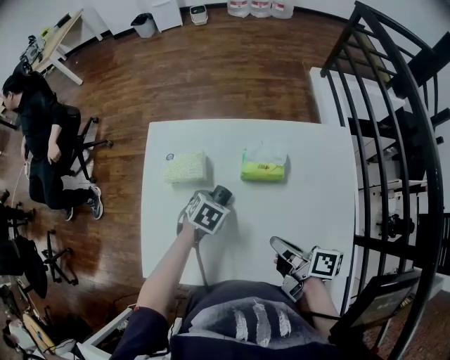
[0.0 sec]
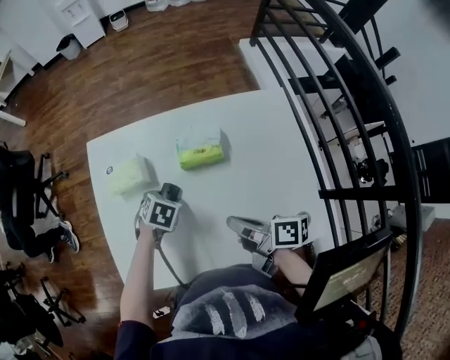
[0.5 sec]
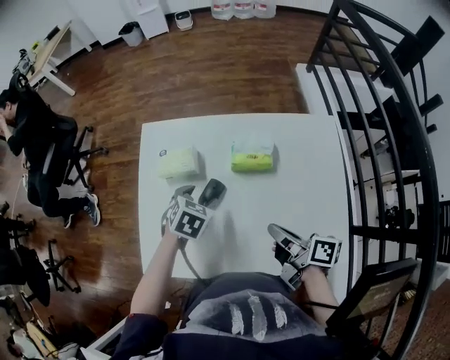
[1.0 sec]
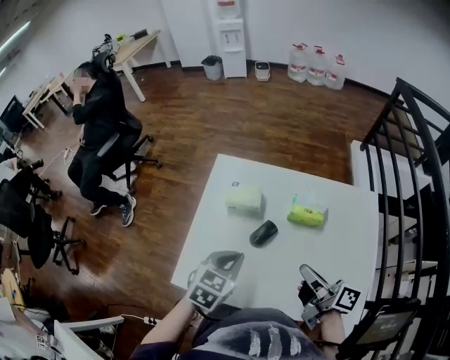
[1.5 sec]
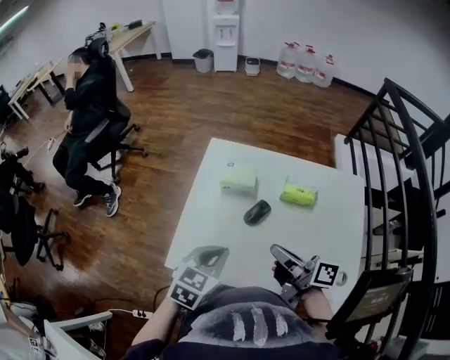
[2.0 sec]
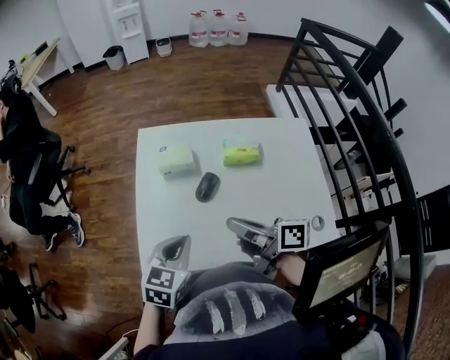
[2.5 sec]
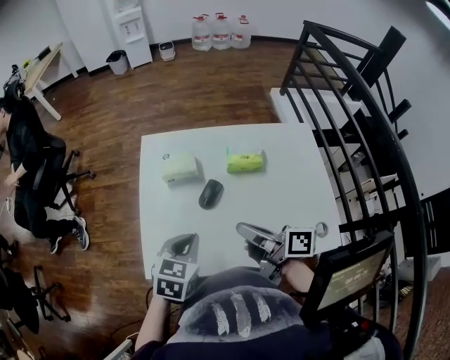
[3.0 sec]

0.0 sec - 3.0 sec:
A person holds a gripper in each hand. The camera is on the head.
0.0 sec - 1.5 sec: The left gripper heads upward, covering some 20 cm, rotates approximately 30 degrees, and closes up.

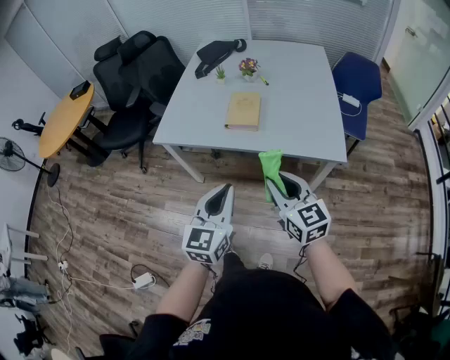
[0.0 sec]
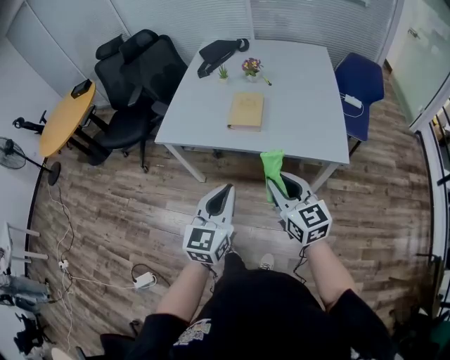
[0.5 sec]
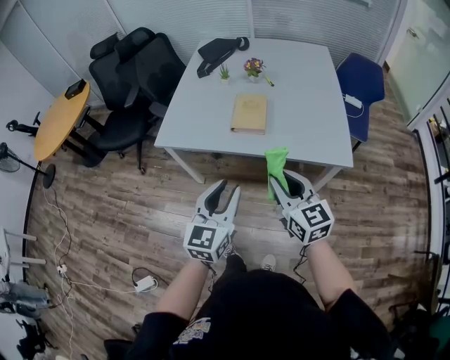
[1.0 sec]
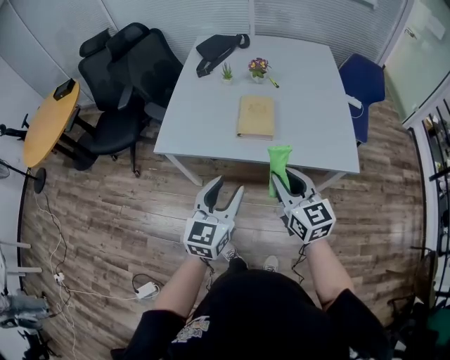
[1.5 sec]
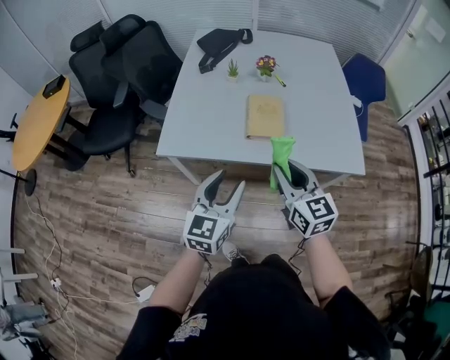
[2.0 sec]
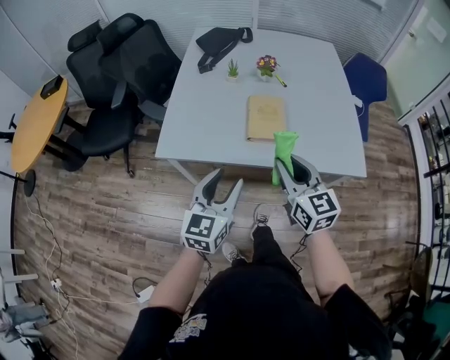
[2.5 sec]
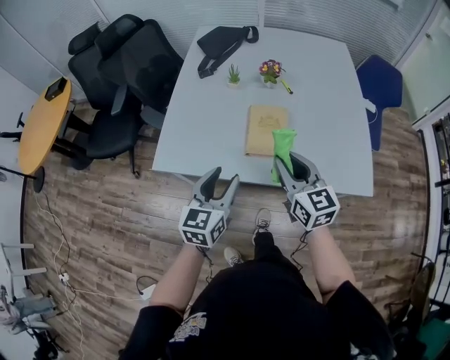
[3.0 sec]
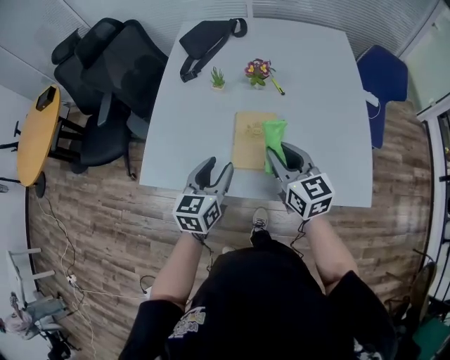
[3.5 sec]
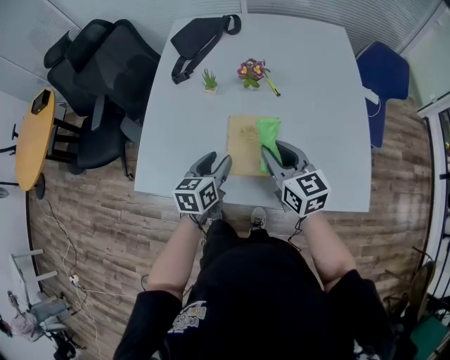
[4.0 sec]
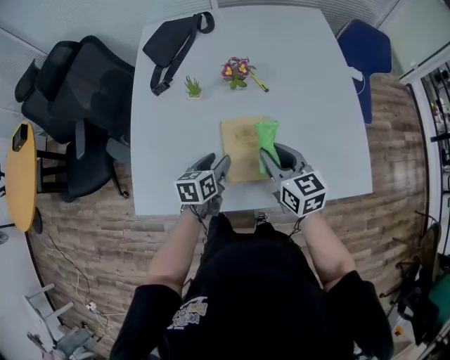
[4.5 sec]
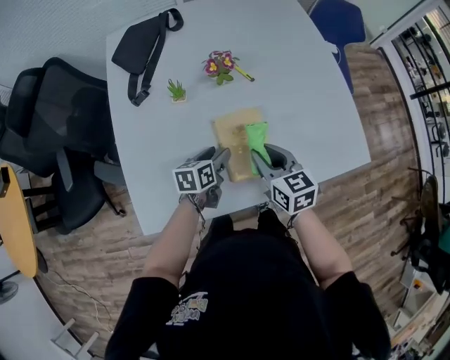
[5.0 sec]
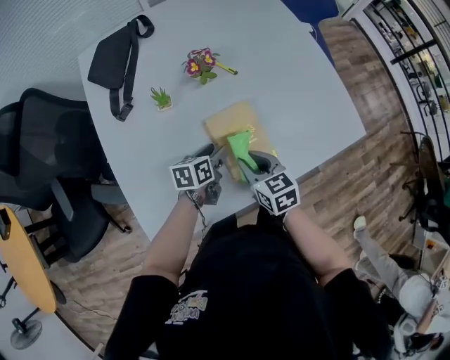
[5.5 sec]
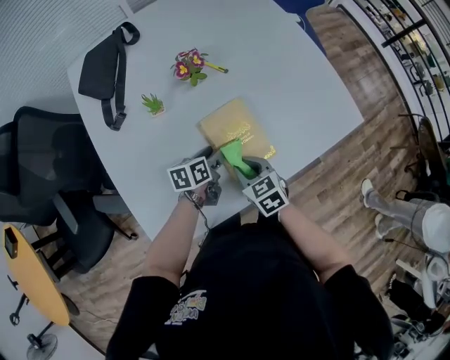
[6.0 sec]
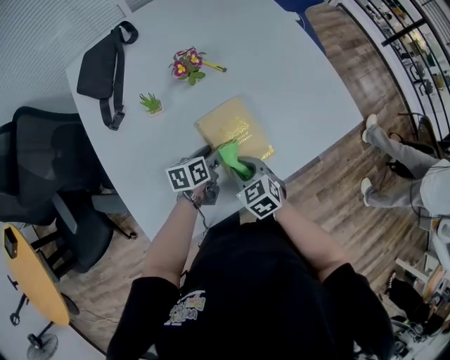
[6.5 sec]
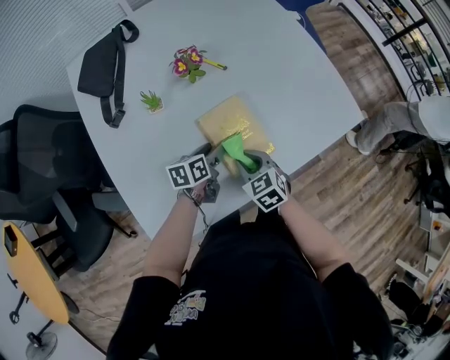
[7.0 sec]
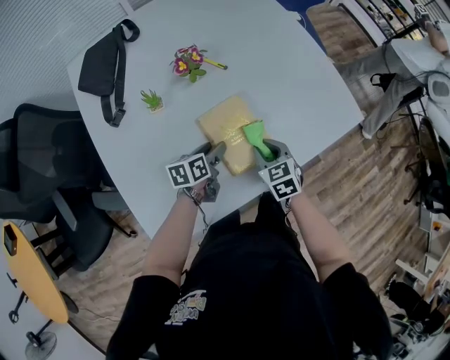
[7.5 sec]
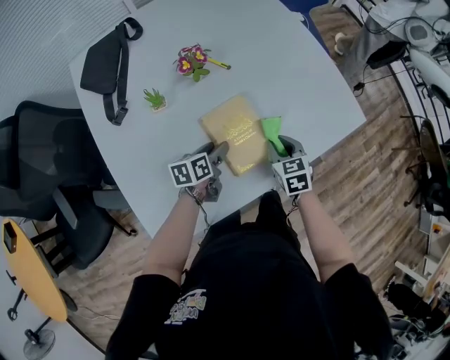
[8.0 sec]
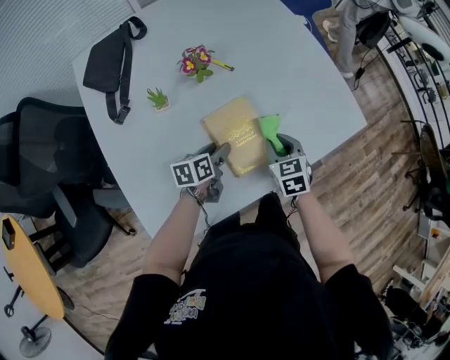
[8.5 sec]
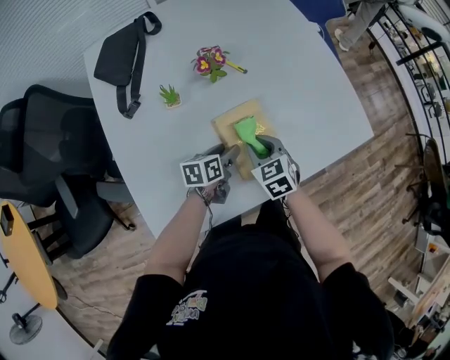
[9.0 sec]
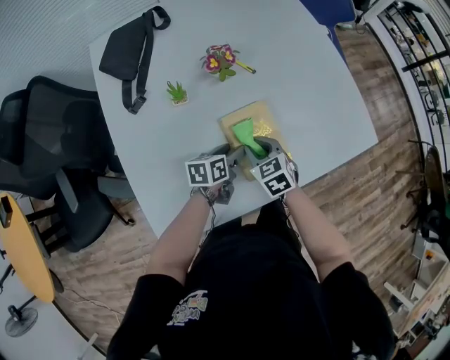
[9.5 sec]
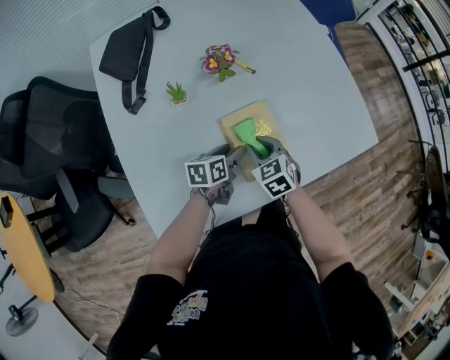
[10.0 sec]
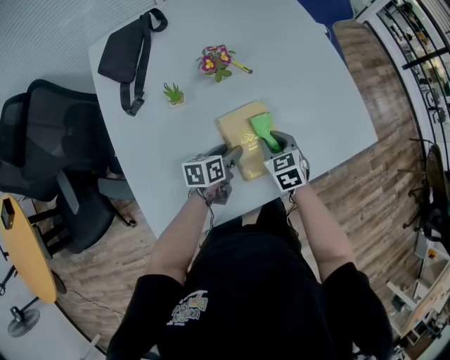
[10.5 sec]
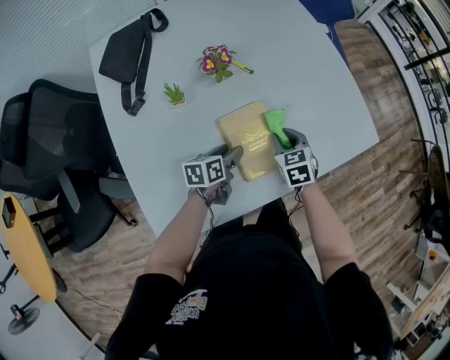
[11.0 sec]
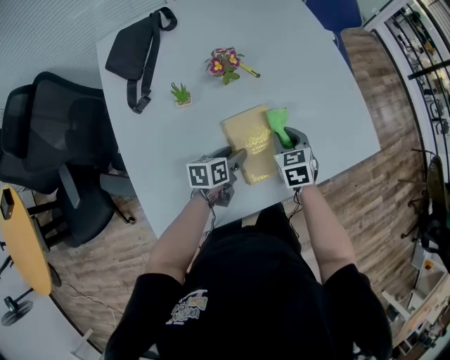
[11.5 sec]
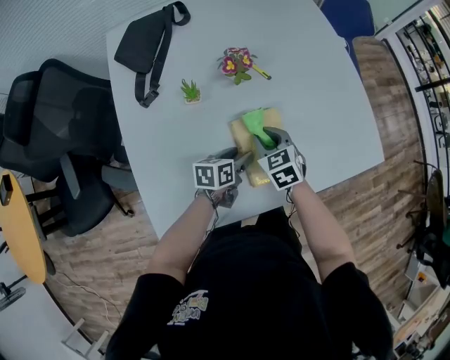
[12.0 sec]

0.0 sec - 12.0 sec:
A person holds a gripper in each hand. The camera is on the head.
0.0 sec - 2.0 sec: The grippers both shift forward and to the left by some 20 cm. The left gripper opens.
2.0 sec - 4.0 sec: The right gripper goes roughly 25 cm forward. Meanwhile the left gripper moves forward and downward, roughly 30 cm, and rotates roughly 30 degrees.
4.0 sec - 6.0 sec: Both grippers move downward, approximately 15 cm. The left gripper turns by some 40 degrees. The right gripper tips its fingers downward by some 30 degrees.
6.0 sec - 8.0 sec: The right gripper shifts some 15 cm to the right and forward.
8.0 sec - 10.0 sec: The right gripper travels to the left by approximately 10 cm, and changes its angle by some 20 degrees.
10.0 sec - 12.0 sec: The right gripper goes to the right and returns, about 10 cm each way.

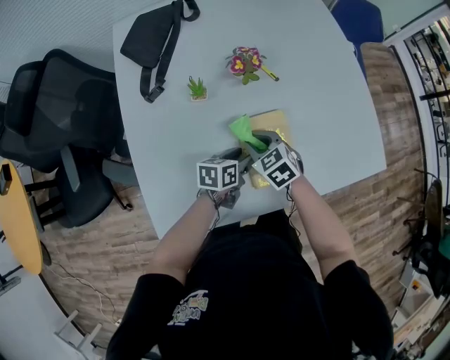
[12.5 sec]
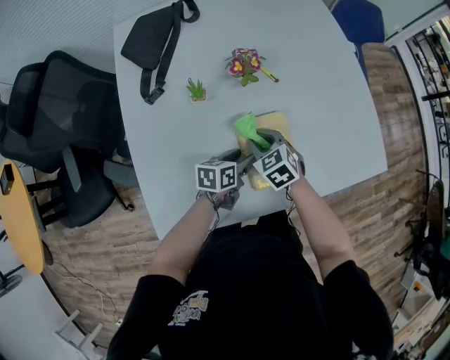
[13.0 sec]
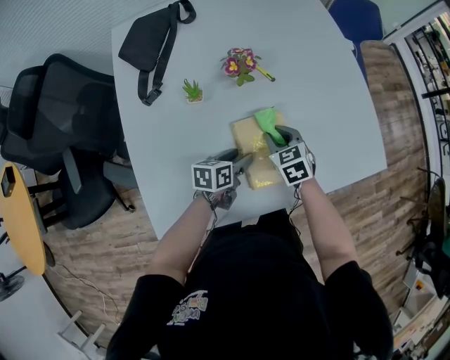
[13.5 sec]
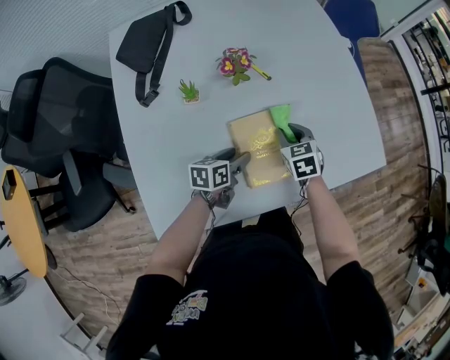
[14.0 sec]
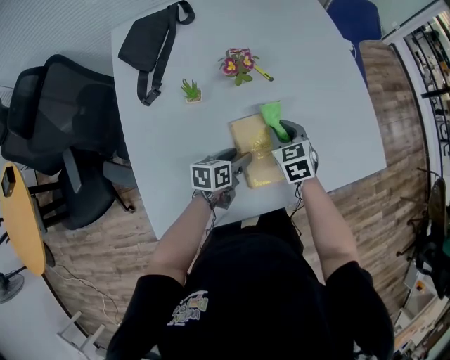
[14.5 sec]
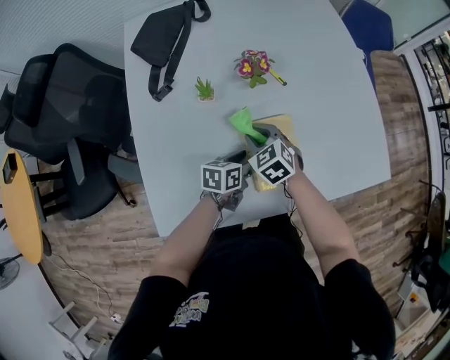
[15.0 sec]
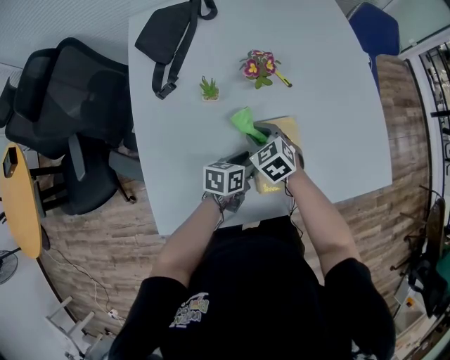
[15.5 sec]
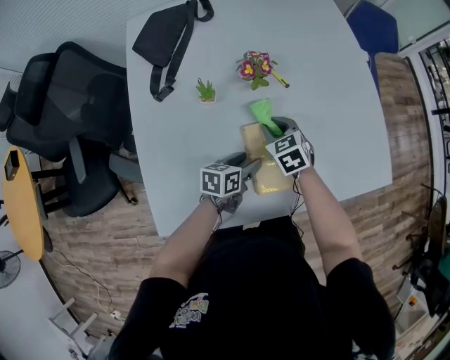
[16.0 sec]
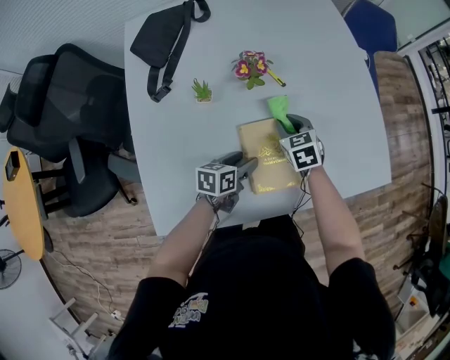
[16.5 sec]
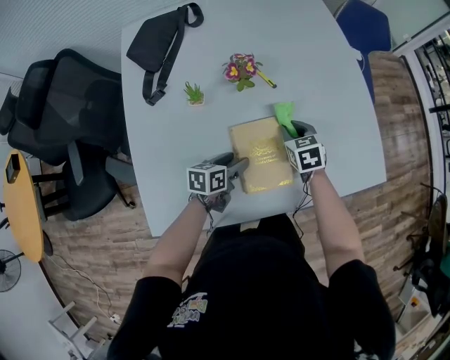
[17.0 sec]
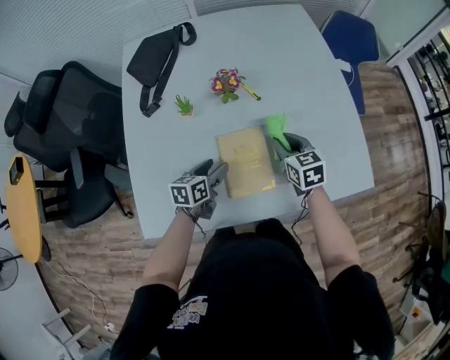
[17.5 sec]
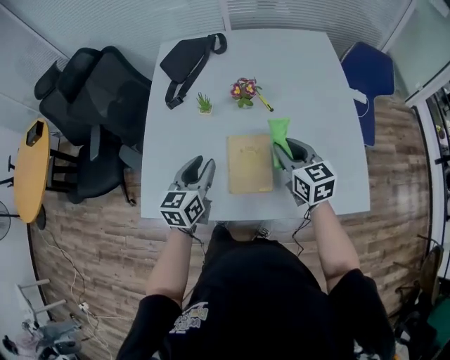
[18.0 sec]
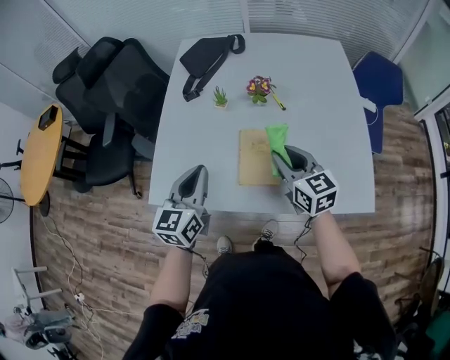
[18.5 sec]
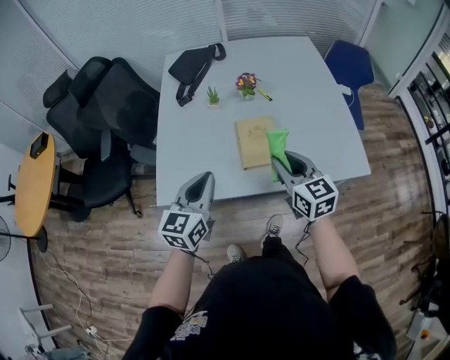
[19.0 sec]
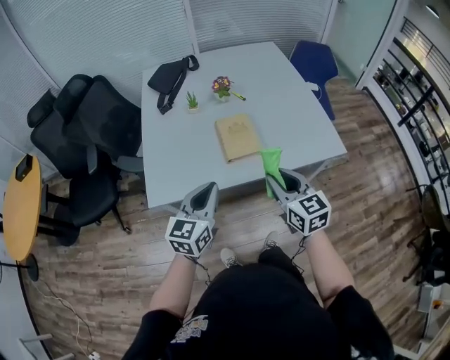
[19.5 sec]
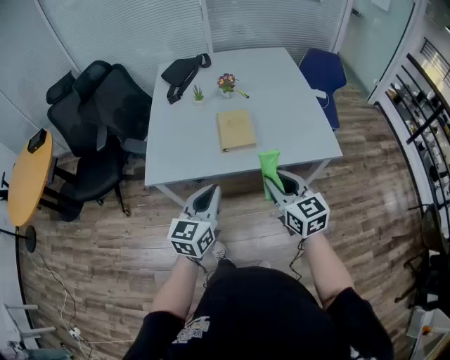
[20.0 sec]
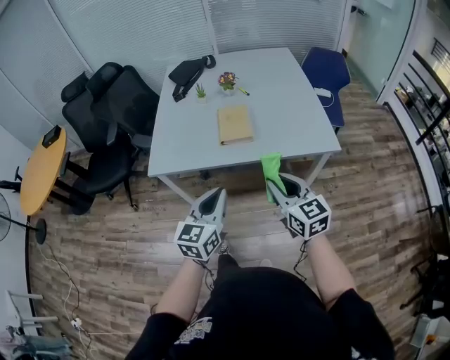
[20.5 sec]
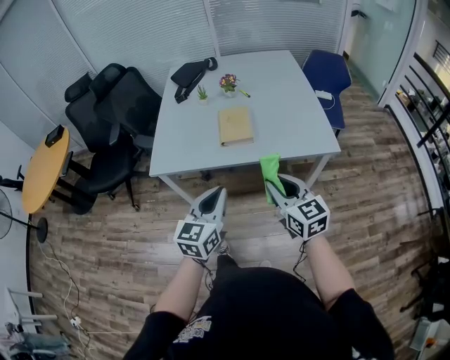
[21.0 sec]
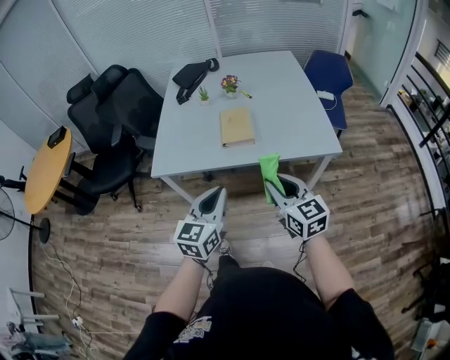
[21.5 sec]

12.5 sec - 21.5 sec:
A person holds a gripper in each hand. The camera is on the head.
12.5 sec - 14.5 sec: The right gripper goes some 10 cm to the right and forward, and changes its angle by some 20 degrees.
14.5 sec - 17.0 sec: The right gripper reaches some 10 cm to the left, then returns.
17.0 sec - 19.5 sec: The right gripper changes place by about 40 cm, and tips its fingers upward by roughly 30 degrees. The left gripper ends up about 40 cm from where it was, rotates some 50 degrees, and closes its fingers.
19.5 sec - 21.5 sec: Both grippers move backward and to the right, about 15 cm.

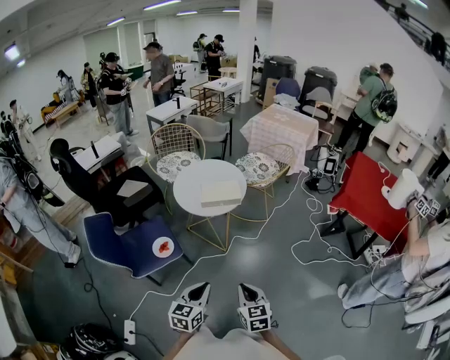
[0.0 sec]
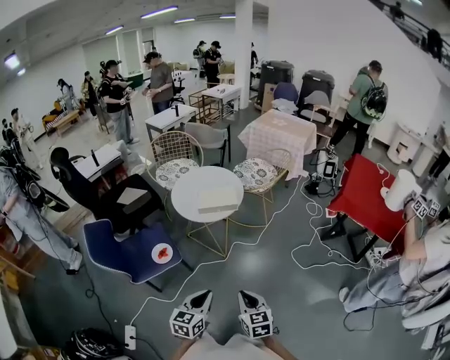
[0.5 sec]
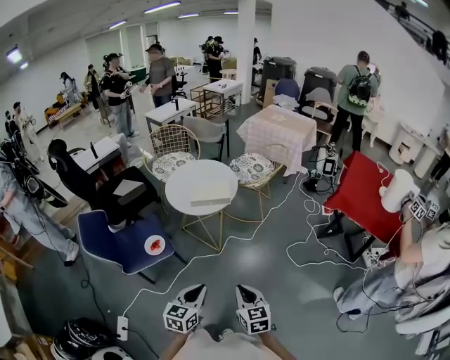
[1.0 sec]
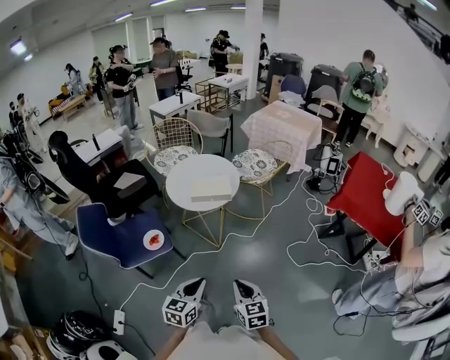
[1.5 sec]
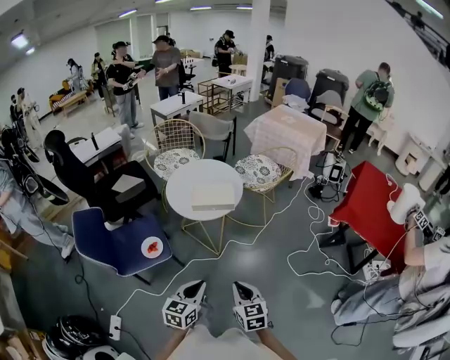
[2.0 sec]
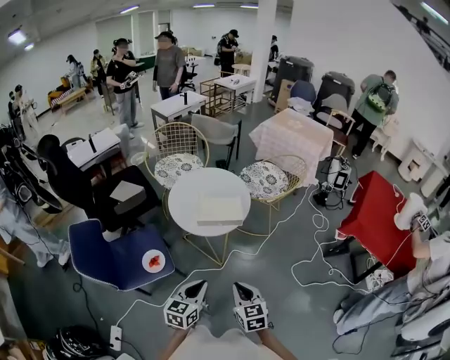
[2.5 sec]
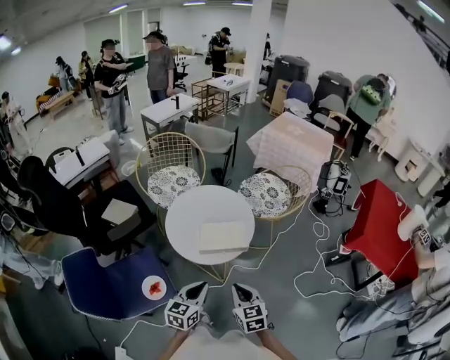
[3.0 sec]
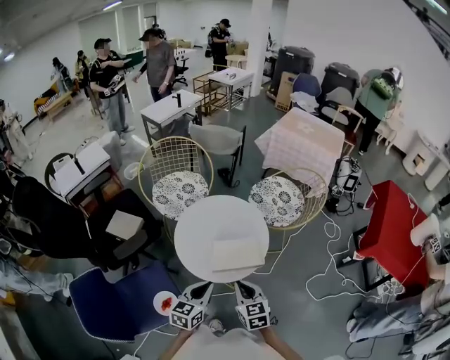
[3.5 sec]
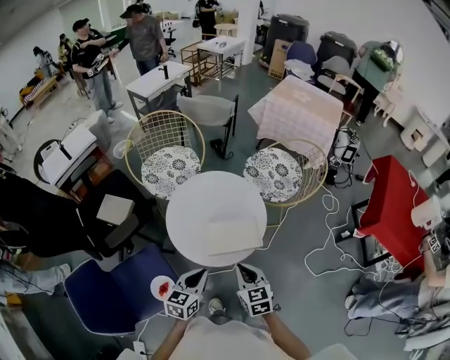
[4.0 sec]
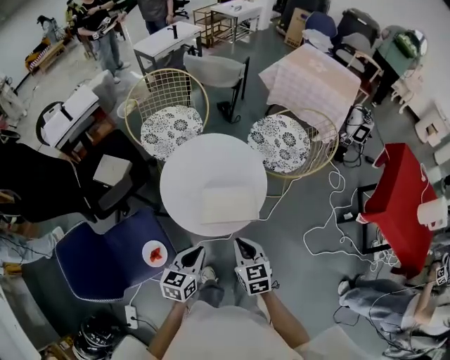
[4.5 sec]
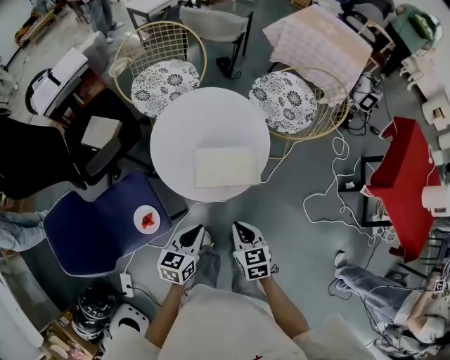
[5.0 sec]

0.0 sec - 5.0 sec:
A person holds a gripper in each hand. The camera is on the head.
0.0 sec - 2.5 sec: The grippers both shift forward by about 15 cm.
2.5 sec - 5.0 sec: The grippers both shift forward and downward by roughly 25 cm.
